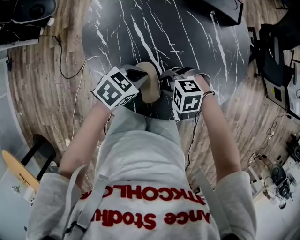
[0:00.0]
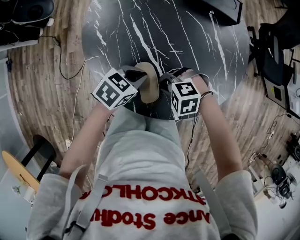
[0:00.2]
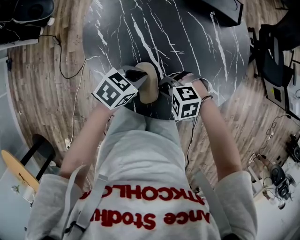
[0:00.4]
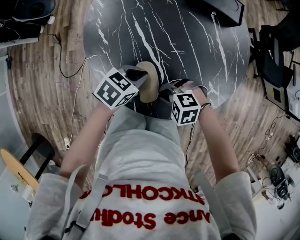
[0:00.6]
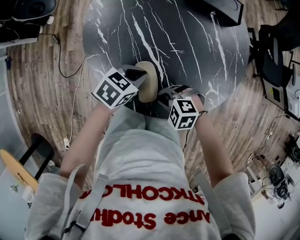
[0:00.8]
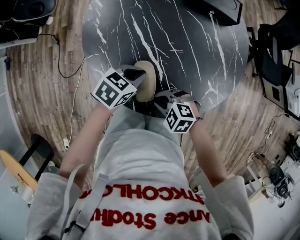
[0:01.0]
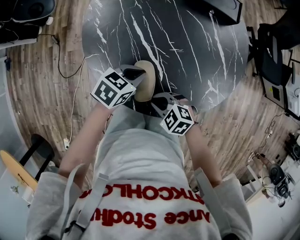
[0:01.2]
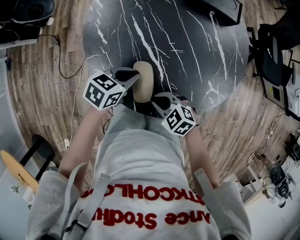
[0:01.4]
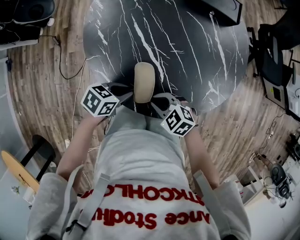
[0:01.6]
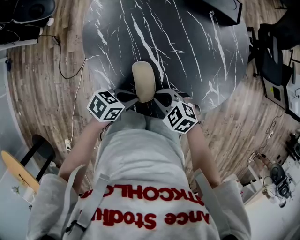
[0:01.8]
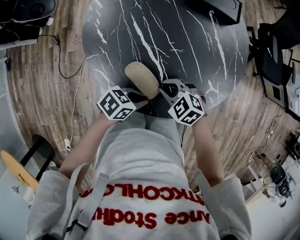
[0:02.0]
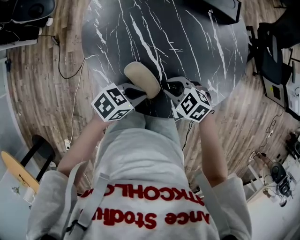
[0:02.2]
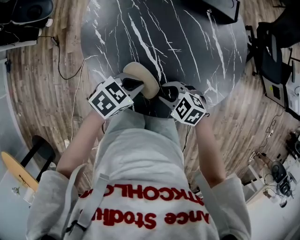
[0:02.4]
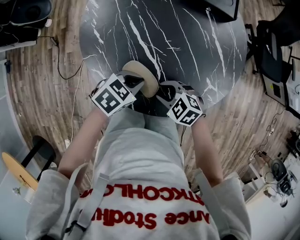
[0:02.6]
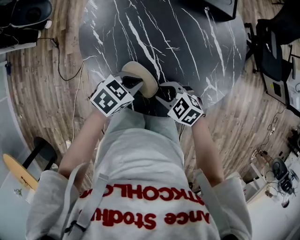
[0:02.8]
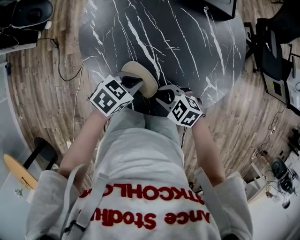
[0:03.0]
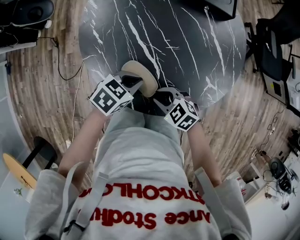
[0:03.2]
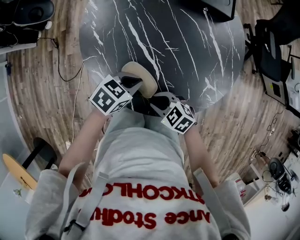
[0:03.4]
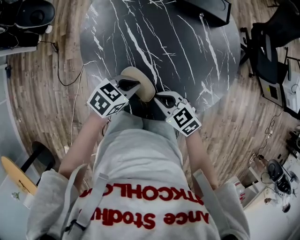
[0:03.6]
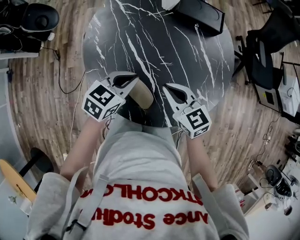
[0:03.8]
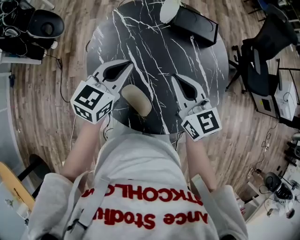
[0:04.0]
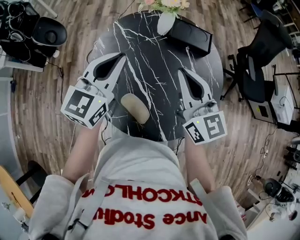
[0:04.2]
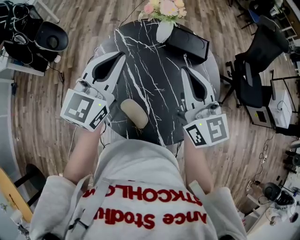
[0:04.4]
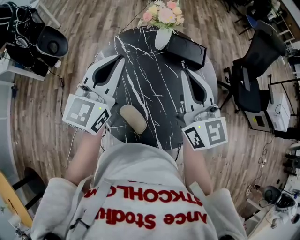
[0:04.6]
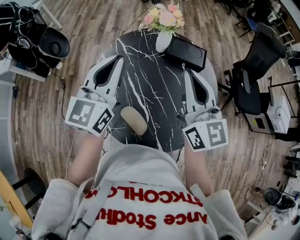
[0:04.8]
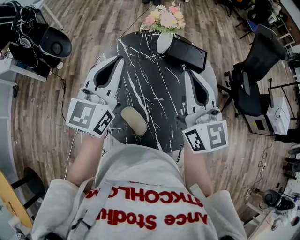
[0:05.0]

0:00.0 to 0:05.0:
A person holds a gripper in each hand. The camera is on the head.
0:00.0 to 0:01.6: The right gripper shifts by some 5 cm, swivels about 40 degrees, and closes up, while the left gripper ends up roughly 10 cm from where it was.
0:01.6 to 0:03.4: The left gripper moves about 10 cm.
0:03.4 to 0:05.0: The grippers both shift upward by roughly 40 cm. The left gripper tilts its fingers roughly 50 degrees upward; the right gripper angles its fingers upward, by some 50 degrees.

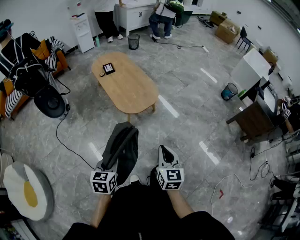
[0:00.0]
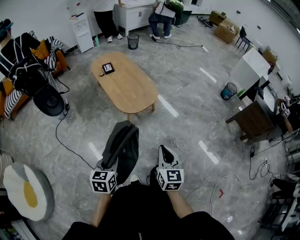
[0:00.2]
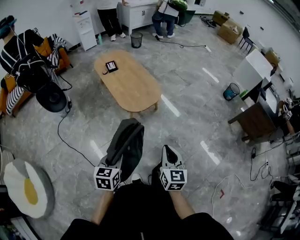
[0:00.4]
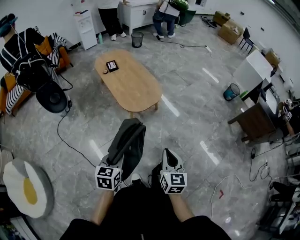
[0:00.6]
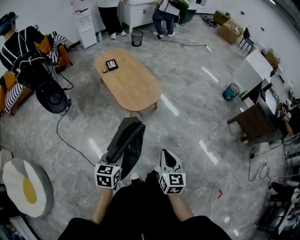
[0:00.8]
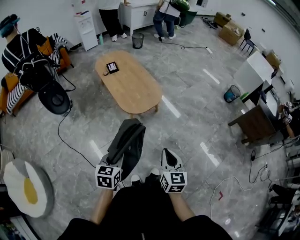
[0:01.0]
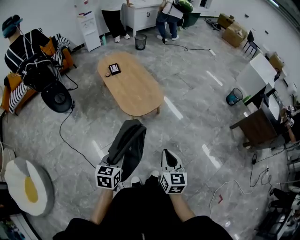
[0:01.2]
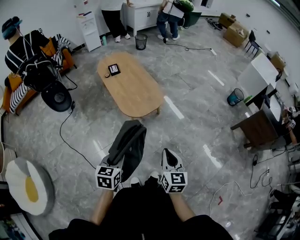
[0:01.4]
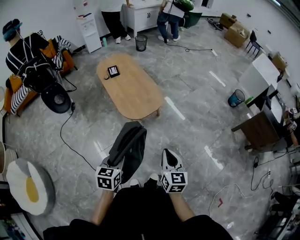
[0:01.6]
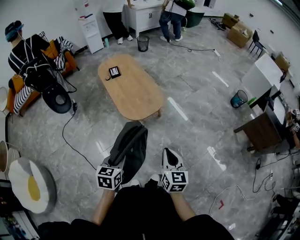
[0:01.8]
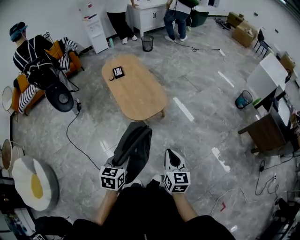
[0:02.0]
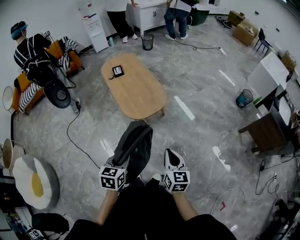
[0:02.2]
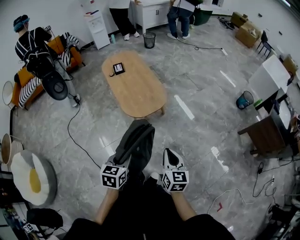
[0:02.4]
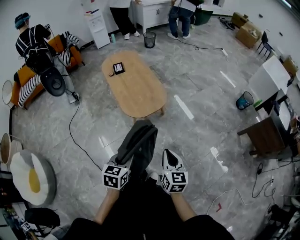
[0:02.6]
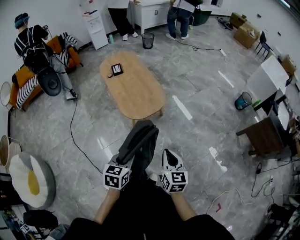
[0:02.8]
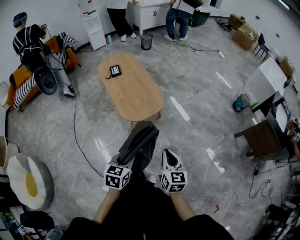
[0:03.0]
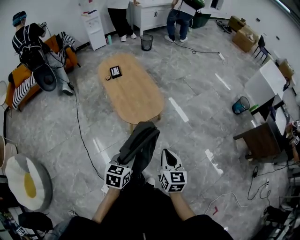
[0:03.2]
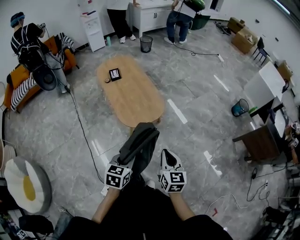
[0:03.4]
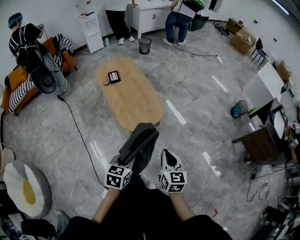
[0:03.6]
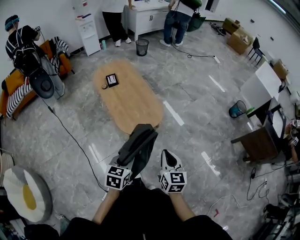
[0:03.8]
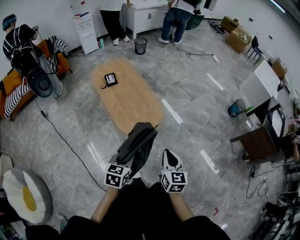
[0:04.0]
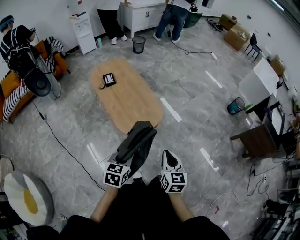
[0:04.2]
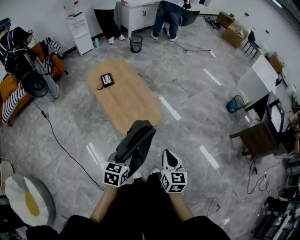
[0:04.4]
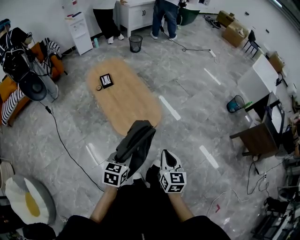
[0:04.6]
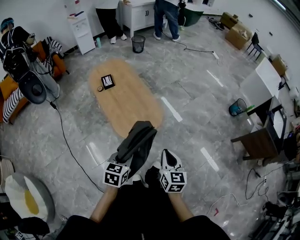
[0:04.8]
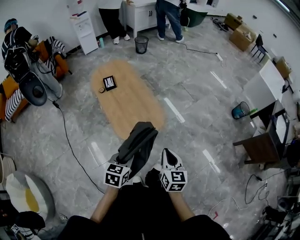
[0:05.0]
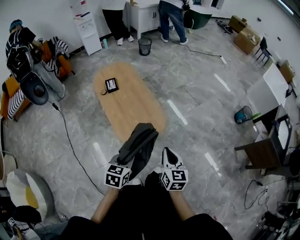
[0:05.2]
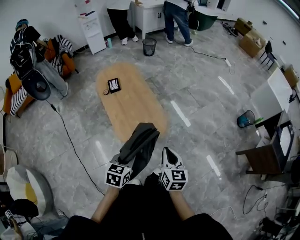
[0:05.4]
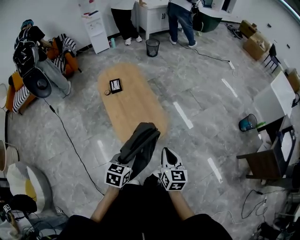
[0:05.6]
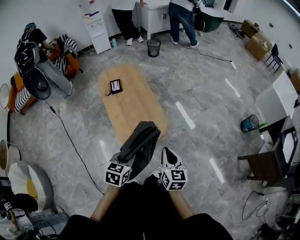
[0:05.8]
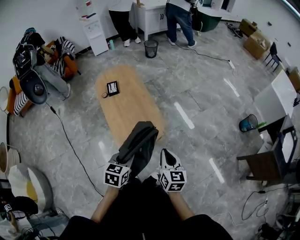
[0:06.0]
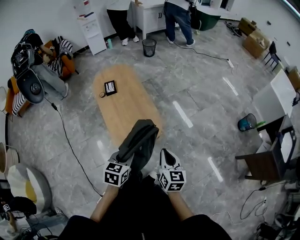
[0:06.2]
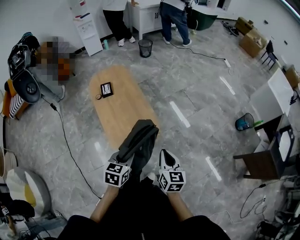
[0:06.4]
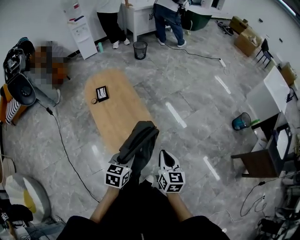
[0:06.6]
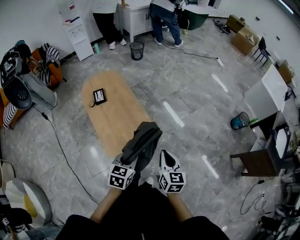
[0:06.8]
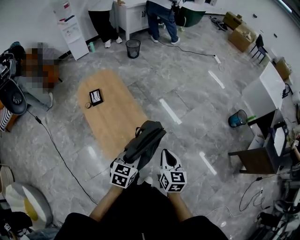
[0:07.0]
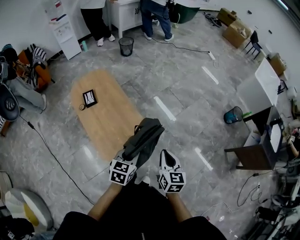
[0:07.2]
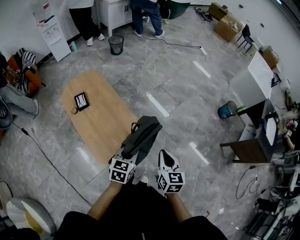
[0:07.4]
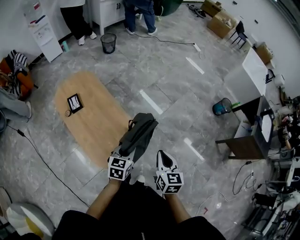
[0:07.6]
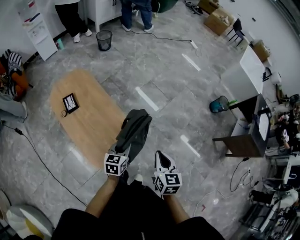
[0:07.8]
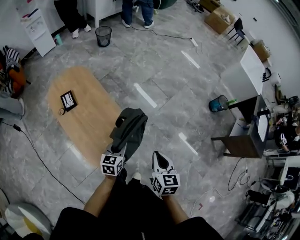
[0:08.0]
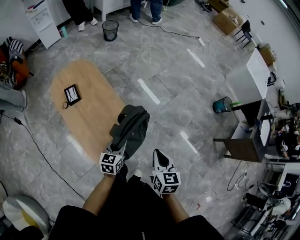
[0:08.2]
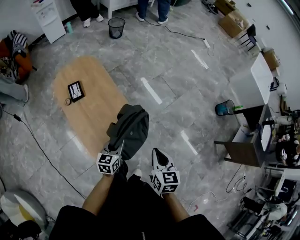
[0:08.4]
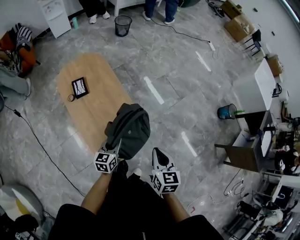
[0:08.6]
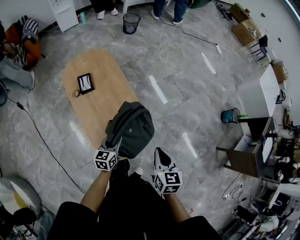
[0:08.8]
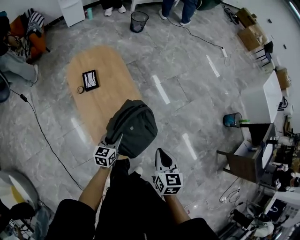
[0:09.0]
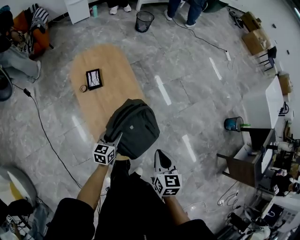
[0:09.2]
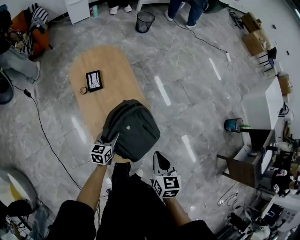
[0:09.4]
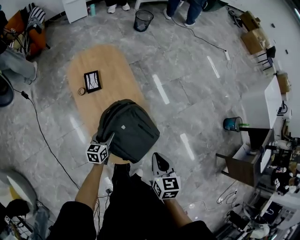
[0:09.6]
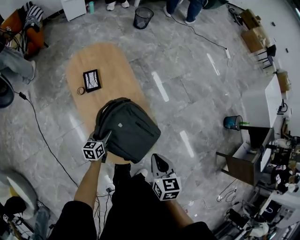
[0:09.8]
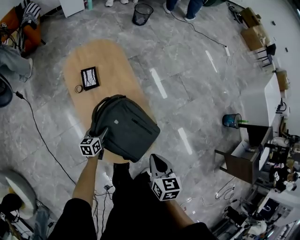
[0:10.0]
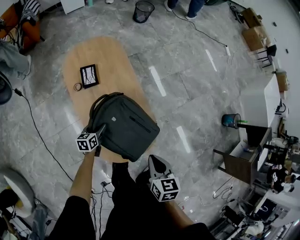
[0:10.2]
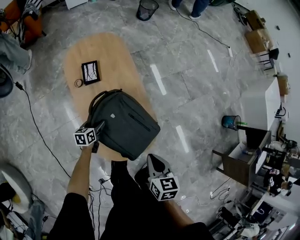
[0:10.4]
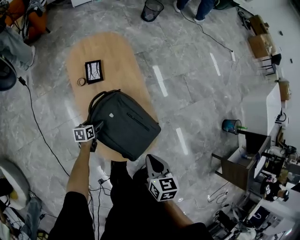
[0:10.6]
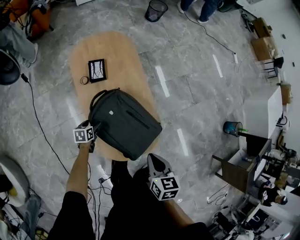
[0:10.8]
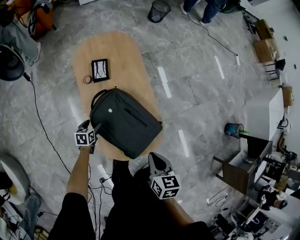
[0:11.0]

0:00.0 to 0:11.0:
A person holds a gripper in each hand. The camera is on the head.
0:00.0 to 0:01.6: The right gripper ends up about 5 cm from where it was. Meanwhile the left gripper is displaced forward by approximately 5 cm.
0:01.6 to 0:03.2: The right gripper is displaced forward by roughly 5 cm. The left gripper moves forward and to the right, approximately 10 cm.
0:03.2 to 0:04.8: The right gripper heads forward, covering about 15 cm, while the left gripper heads forward and to the left, covering approximately 15 cm.
0:04.8 to 0:06.2: The grippers both shift forward and to the right by some 15 cm.
0:06.2 to 0:07.8: The left gripper shifts some 25 cm forward and downward. The right gripper moves forward, roughly 15 cm.
0:07.8 to 0:09.4: The left gripper shifts some 25 cm to the left and downward. Meanwhile the right gripper moves to the left, some 15 cm, and swivels roughly 20 degrees.
0:09.4 to 0:11.0: The left gripper moves to the left and downward, approximately 20 cm, swivels about 30 degrees, and opens. Meanwhile the right gripper is displaced to the left by approximately 5 cm.

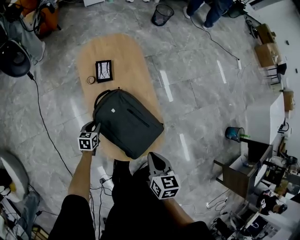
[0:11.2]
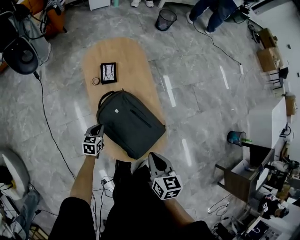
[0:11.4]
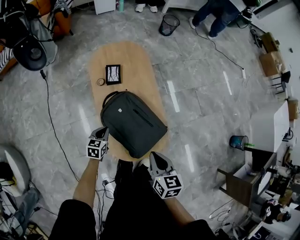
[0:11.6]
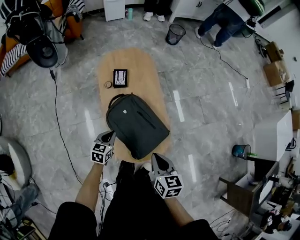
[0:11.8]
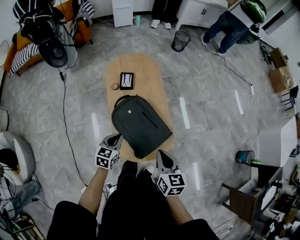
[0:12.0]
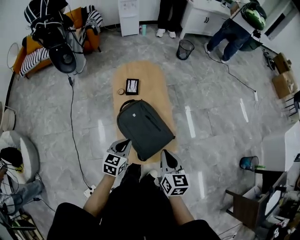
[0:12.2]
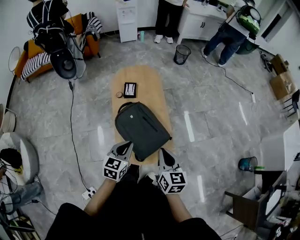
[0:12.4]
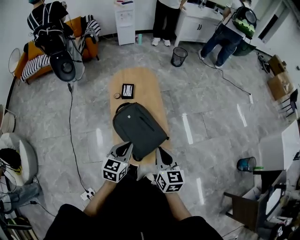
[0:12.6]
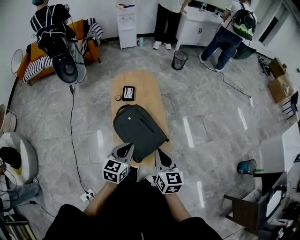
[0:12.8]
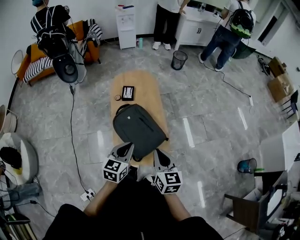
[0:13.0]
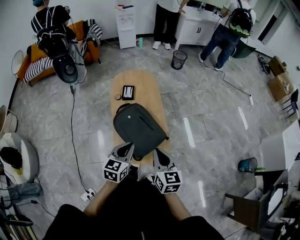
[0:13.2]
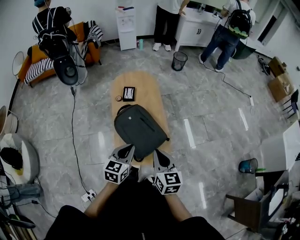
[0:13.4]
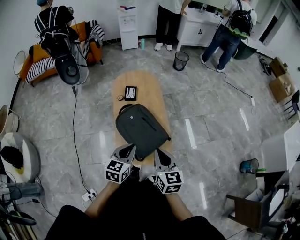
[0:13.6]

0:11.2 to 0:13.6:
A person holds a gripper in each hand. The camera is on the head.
0:11.2 to 0:12.4: The right gripper goes about 10 cm upward, and rotates approximately 20 degrees. The left gripper travels upward, to the right and backward by some 35 cm, and changes its angle by about 30 degrees.
0:12.4 to 0:13.6: The left gripper shifts by roughly 5 cm.

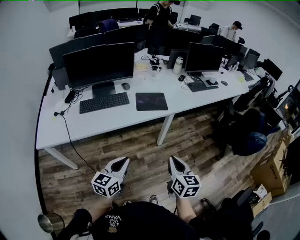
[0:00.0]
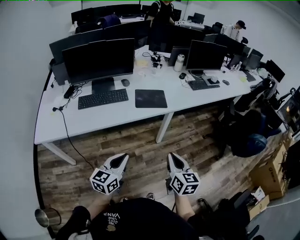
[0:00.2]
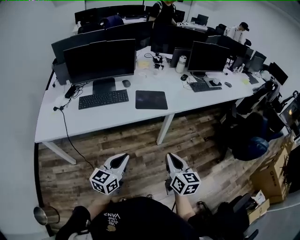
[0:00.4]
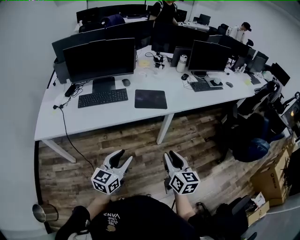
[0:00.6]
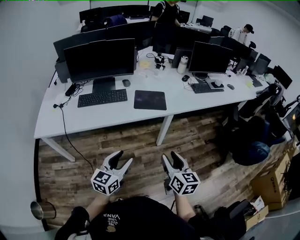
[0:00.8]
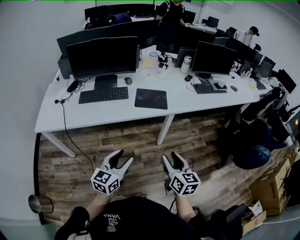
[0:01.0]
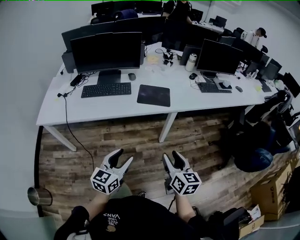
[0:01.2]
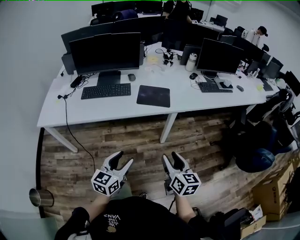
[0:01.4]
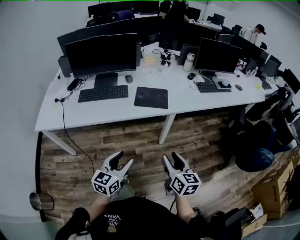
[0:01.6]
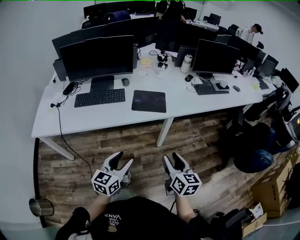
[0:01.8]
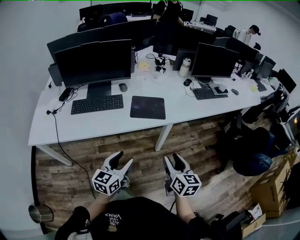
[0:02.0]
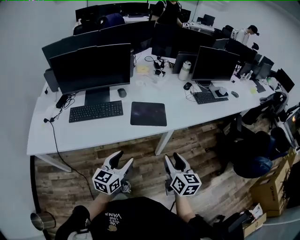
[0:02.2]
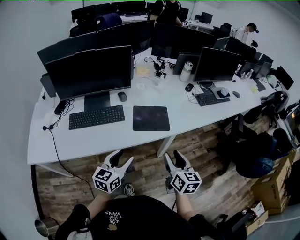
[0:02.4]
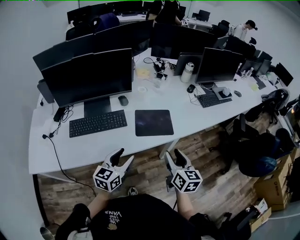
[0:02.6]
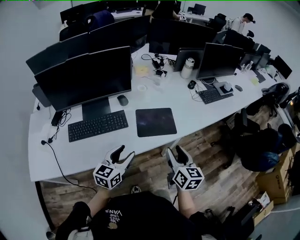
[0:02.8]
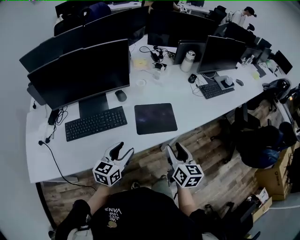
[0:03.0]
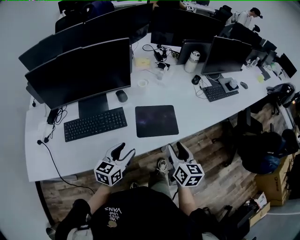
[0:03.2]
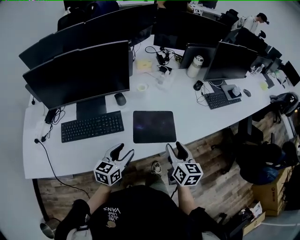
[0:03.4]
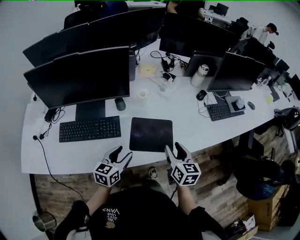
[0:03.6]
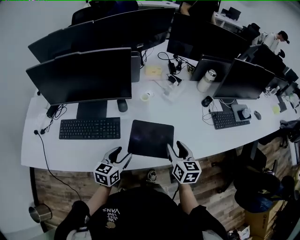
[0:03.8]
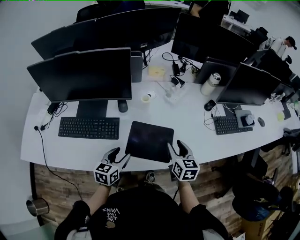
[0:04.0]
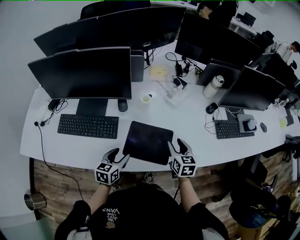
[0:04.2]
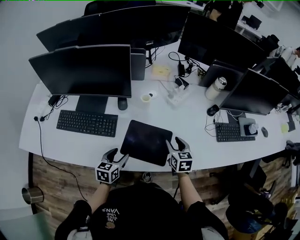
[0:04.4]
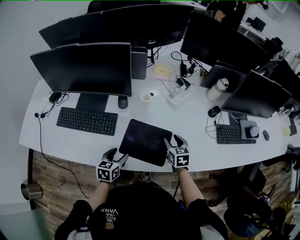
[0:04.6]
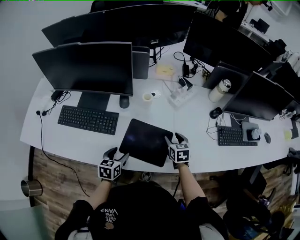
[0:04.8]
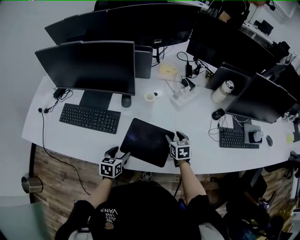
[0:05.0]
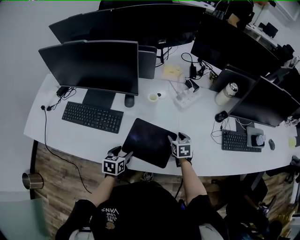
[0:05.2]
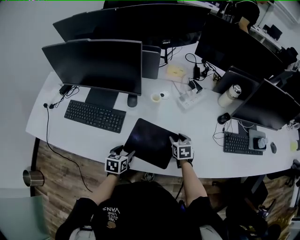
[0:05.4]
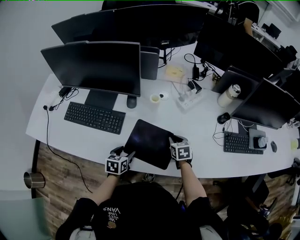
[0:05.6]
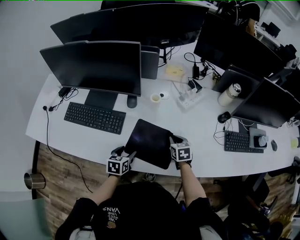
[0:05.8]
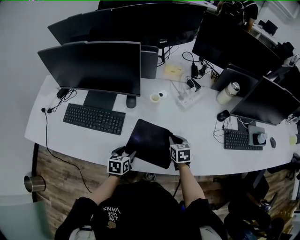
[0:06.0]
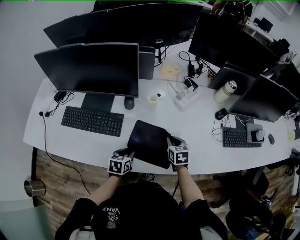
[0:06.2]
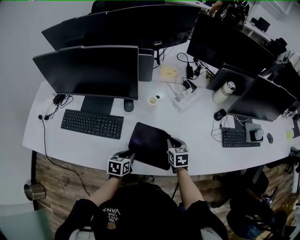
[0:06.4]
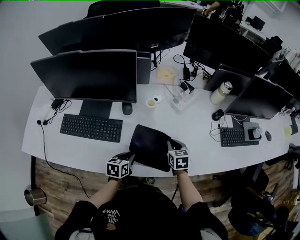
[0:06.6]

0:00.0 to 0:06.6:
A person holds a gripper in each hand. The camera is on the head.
0:00.0 to 0:01.6: The left gripper is displaced to the right by roughly 10 cm, and opens its fingers; the right gripper heads to the right and forward, covering about 10 cm, and opens its fingers.
0:01.6 to 0:03.2: The grippers both shift forward by some 30 cm.
0:03.2 to 0:05.0: The right gripper changes place by some 35 cm, and swivels some 40 degrees, while the left gripper moves downward, some 15 cm, and turns by some 40 degrees.
0:05.0 to 0:06.6: The left gripper closes its fingers; the right gripper changes place by about 5 cm, and closes.
